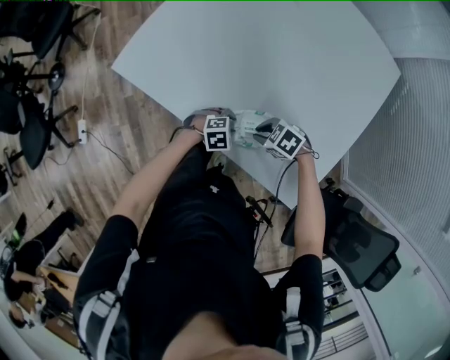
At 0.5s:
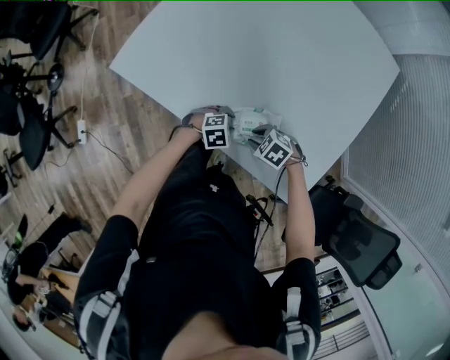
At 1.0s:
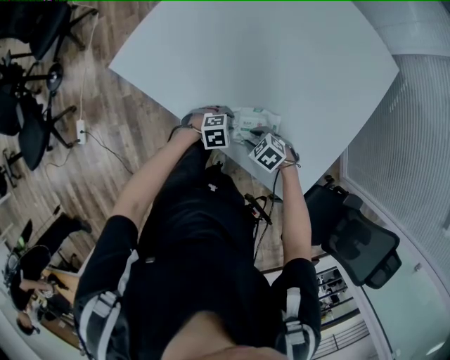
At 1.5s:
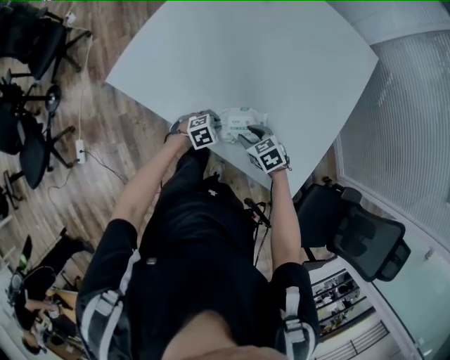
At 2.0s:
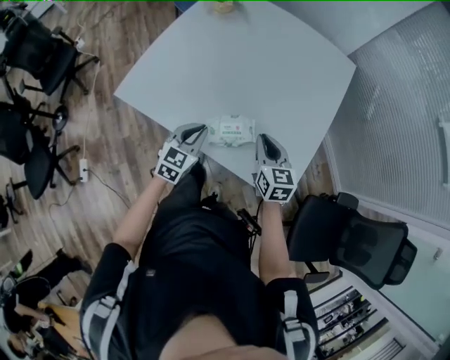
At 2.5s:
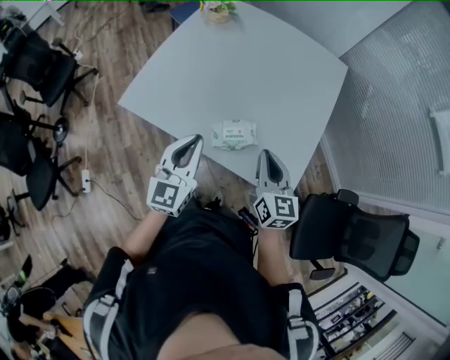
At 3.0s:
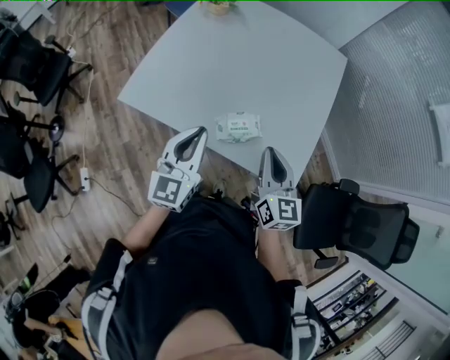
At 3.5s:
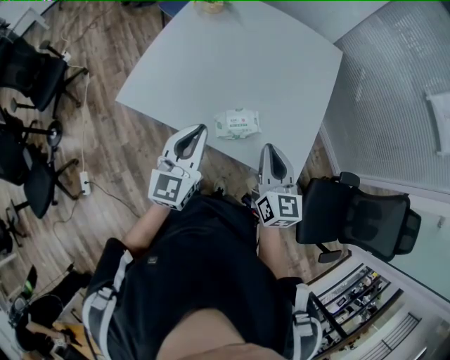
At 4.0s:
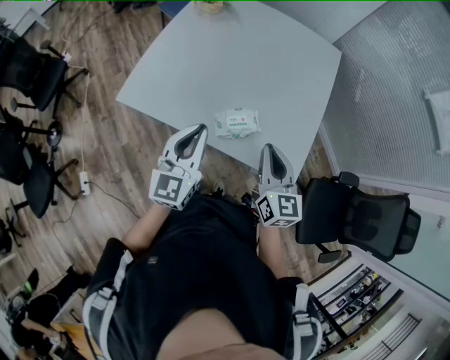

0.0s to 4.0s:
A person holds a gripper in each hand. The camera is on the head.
0.0s to 2.0s: The grippers both shift upward by approximately 20 cm. The left gripper points its fingers about 30 degrees further upward, and closes up; the right gripper points its fingers some 30 degrees further upward, and opens and closes again.
2.0s to 4.0s: The left gripper goes approximately 20 cm upward, and turns by roughly 30 degrees. Meanwhile the right gripper goes roughly 15 cm upward and backward.

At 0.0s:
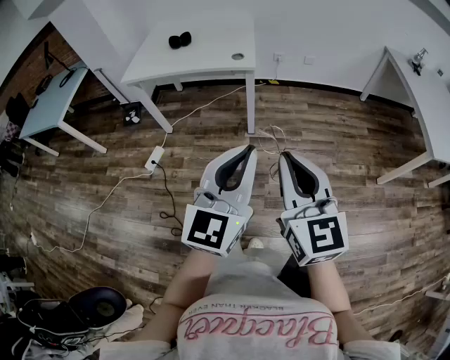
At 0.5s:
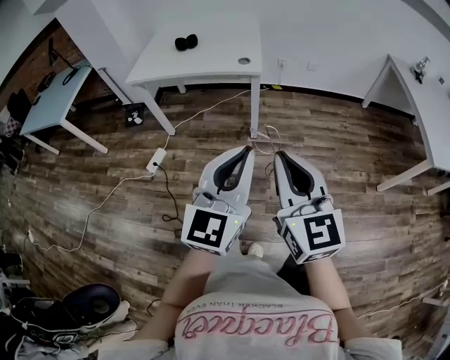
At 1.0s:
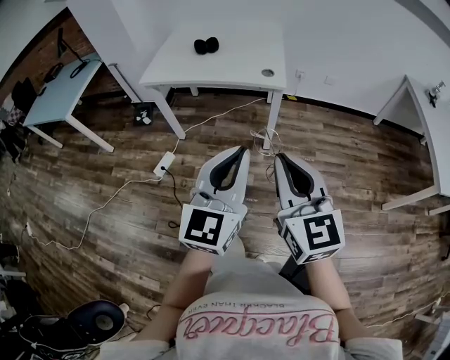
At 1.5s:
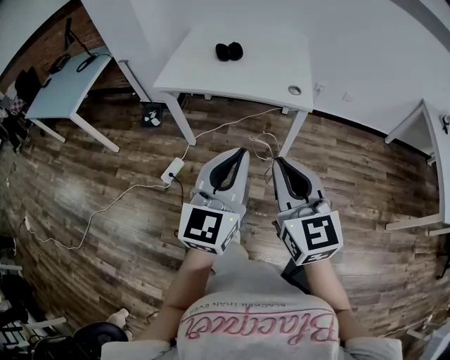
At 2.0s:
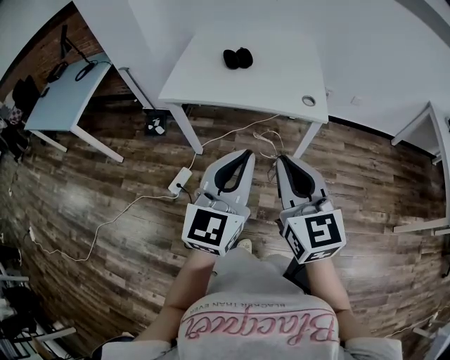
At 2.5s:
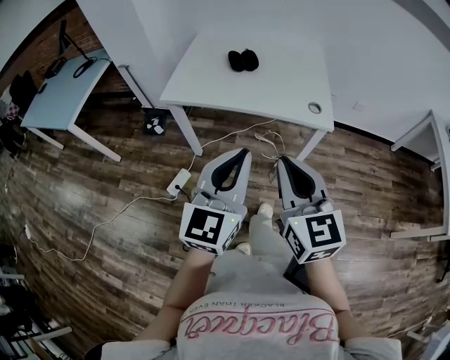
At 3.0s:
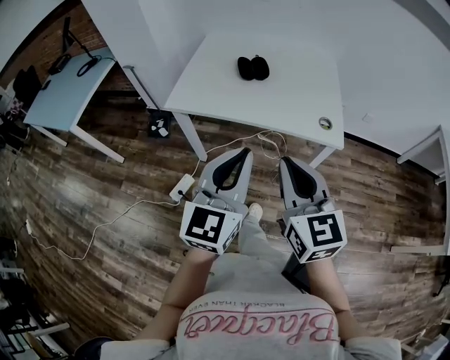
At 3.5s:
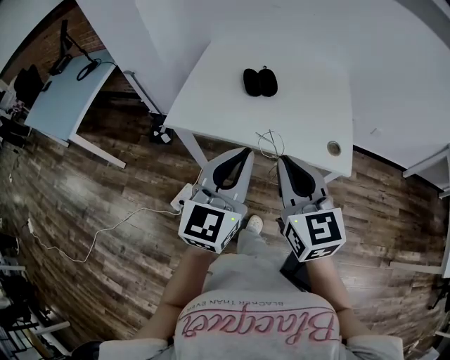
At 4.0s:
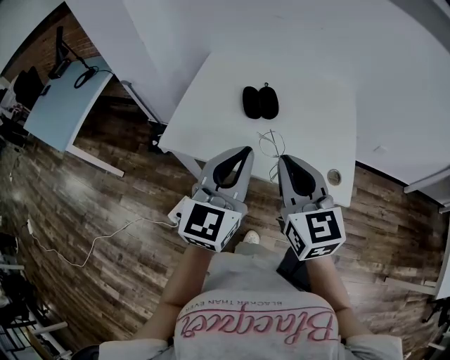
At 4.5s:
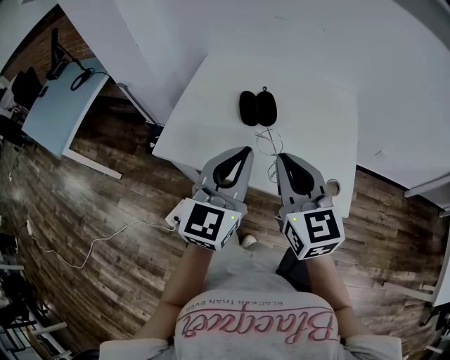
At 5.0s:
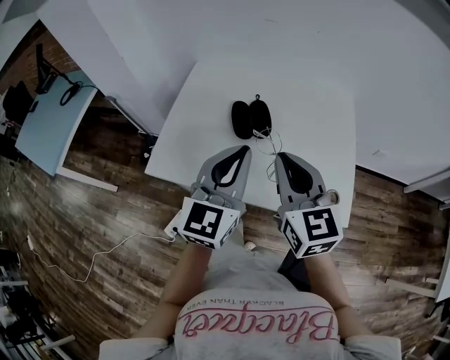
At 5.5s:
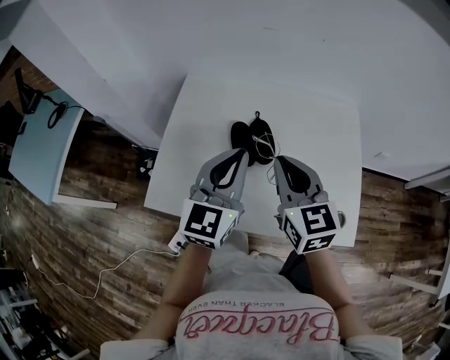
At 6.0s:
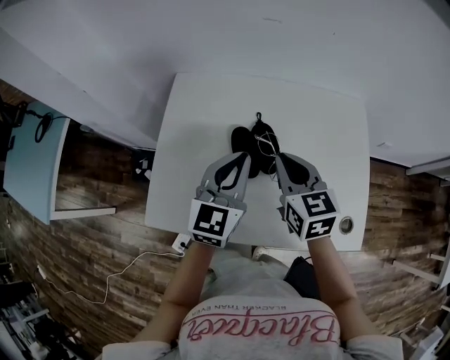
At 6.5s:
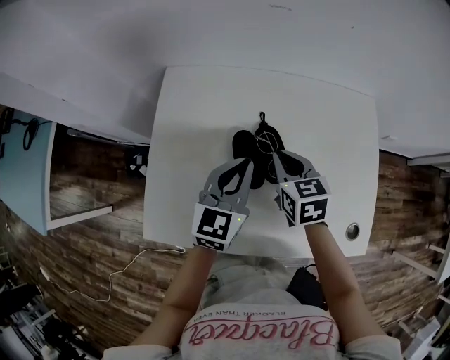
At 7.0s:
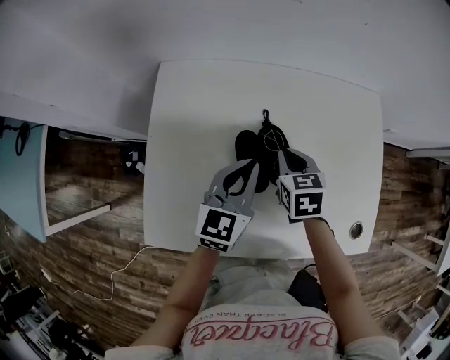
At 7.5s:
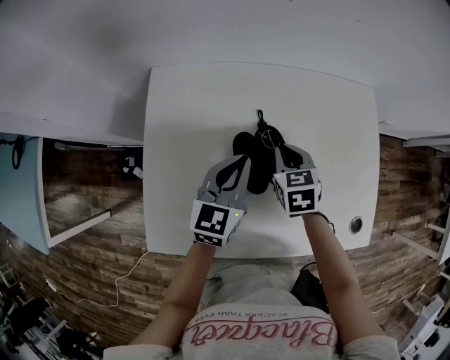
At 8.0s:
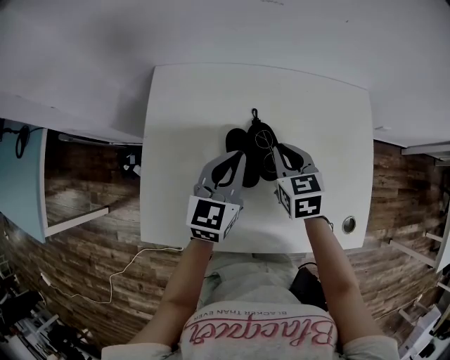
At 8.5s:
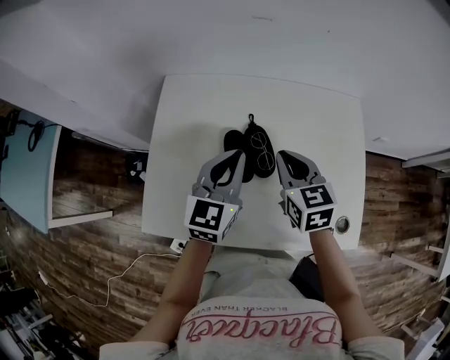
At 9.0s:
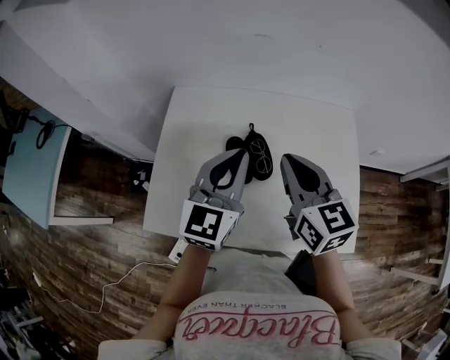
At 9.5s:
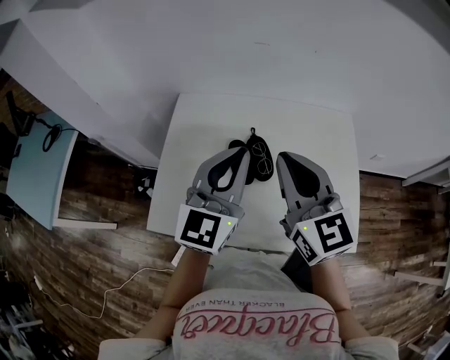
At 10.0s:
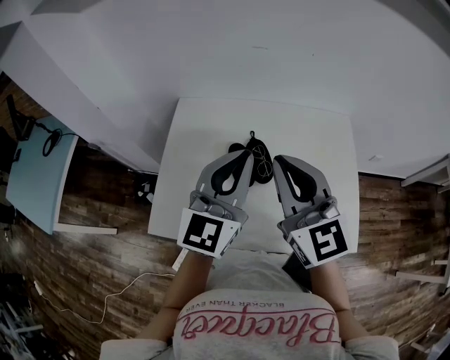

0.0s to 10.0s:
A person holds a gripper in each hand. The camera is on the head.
0.0s to 2.0s: Both grippers travel together to the left and forward, roughly 35 cm.
2.0s to 4.0s: Both grippers travel together forward, some 35 cm.
4.0s to 6.0s: Both grippers travel together forward, roughly 30 cm. The right gripper changes its angle by about 20 degrees.
6.0s to 8.0s: Both grippers travel together downward and forward, some 10 cm.
8.0s to 10.0s: The grippers both shift upward and backward by roughly 25 cm. The right gripper points its fingers roughly 40 degrees further upward, while the left gripper turns by approximately 30 degrees.

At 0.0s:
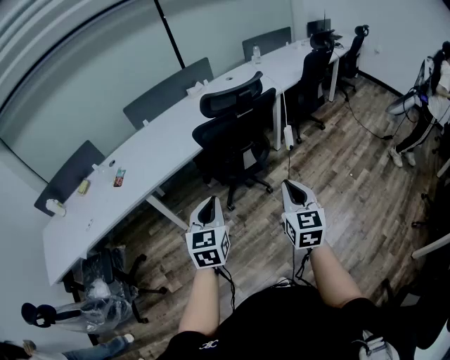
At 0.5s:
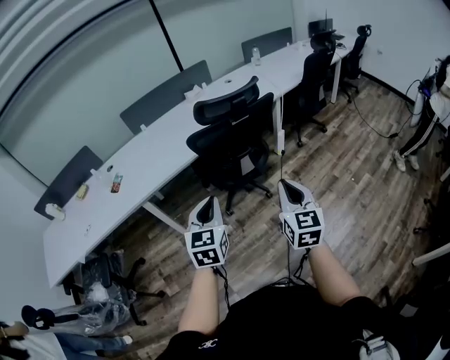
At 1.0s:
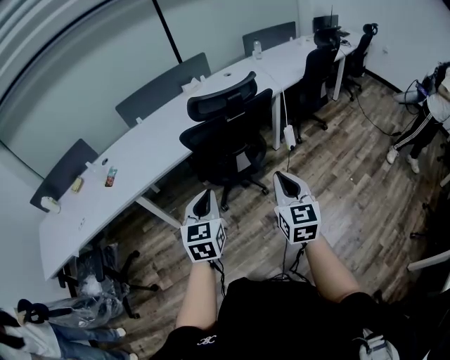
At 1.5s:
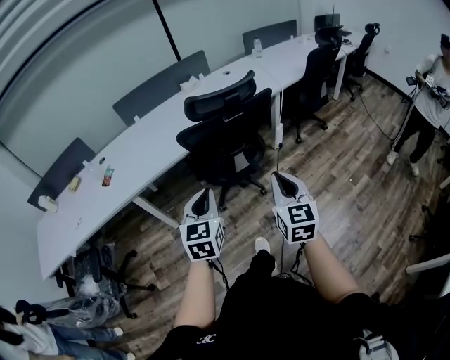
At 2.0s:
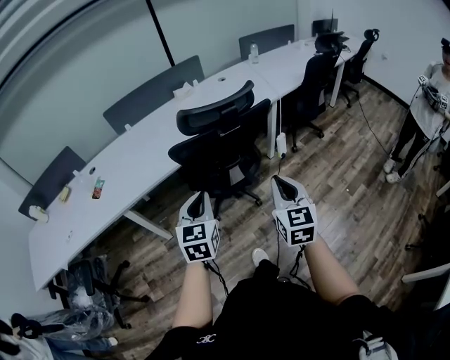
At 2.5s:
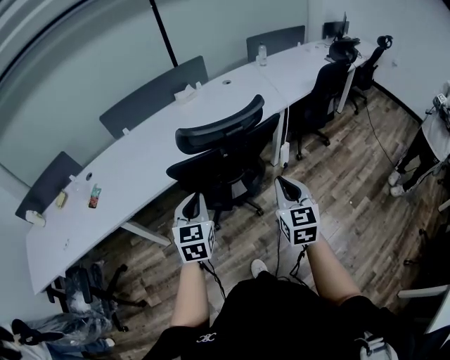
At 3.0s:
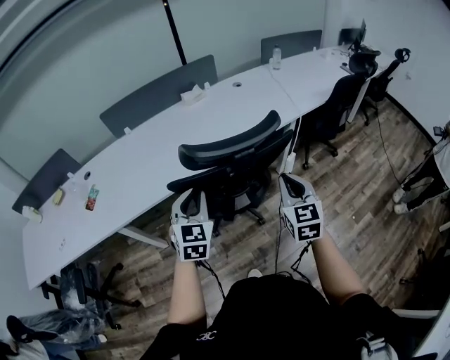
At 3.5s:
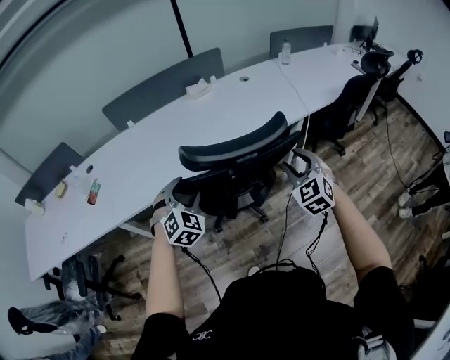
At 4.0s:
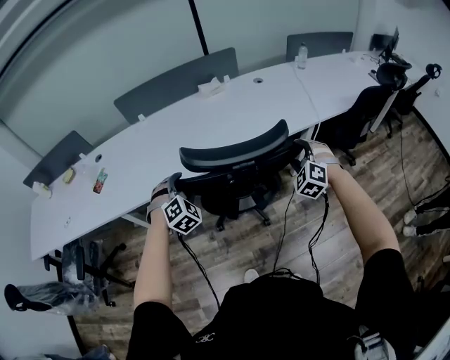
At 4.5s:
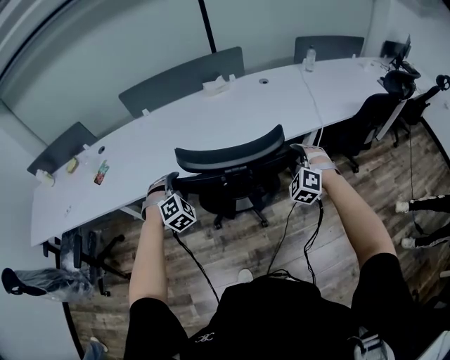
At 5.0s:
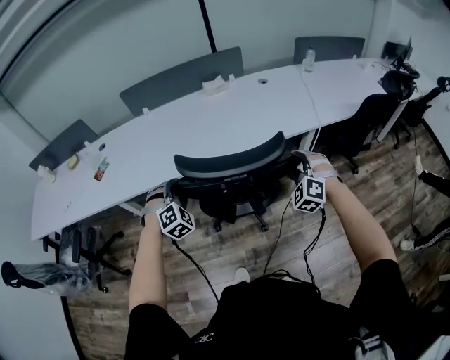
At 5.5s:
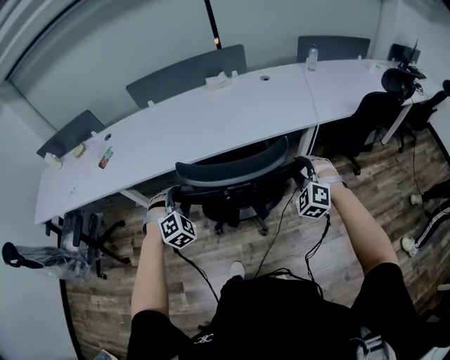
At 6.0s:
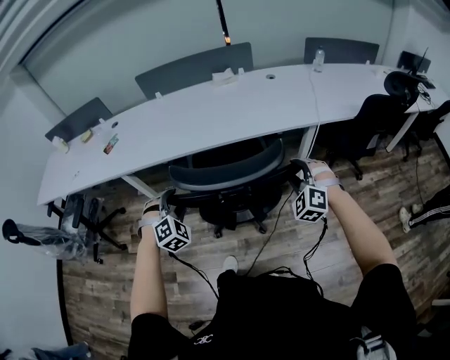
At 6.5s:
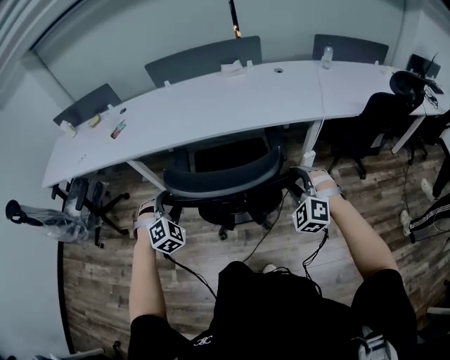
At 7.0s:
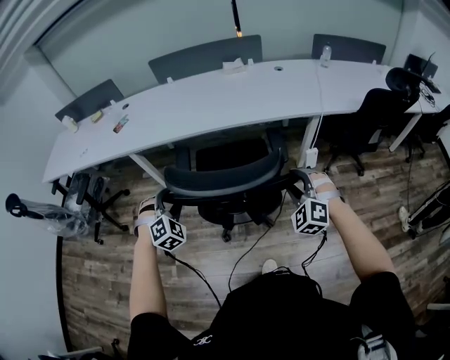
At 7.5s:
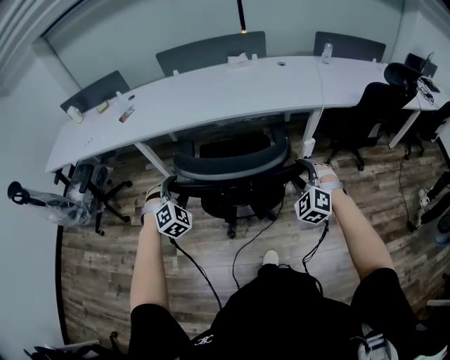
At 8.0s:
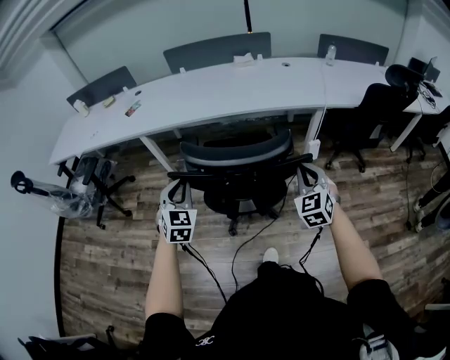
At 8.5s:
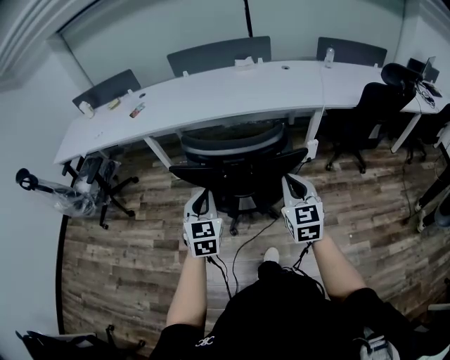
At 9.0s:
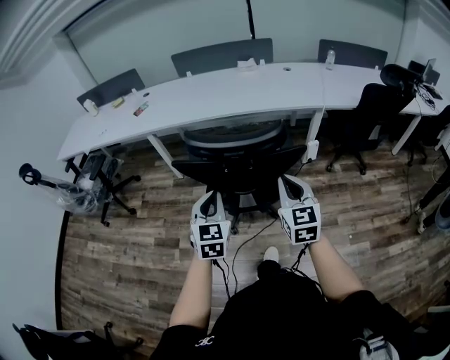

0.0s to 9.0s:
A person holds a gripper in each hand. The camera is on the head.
0.0s to 2.0s: Both grippers move forward and to the right, some 20 cm.
2.0s to 4.5s: The grippers both shift forward by approximately 35 cm. The right gripper rolls counterclockwise, seen from behind, by some 70 degrees, and opens its fingers; the left gripper rotates around the line of its fingers by some 50 degrees, clockwise from behind, and opens up.
4.5s to 7.0s: Both grippers travel together backward, roughly 30 cm.
7.0s to 9.0s: The left gripper shifts about 25 cm backward and to the right, twists about 50 degrees counterclockwise, seen from behind, and closes up, while the right gripper heads backward, covering approximately 20 cm, rotates around the line of its fingers by roughly 60 degrees, clockwise from behind, and closes its fingers.

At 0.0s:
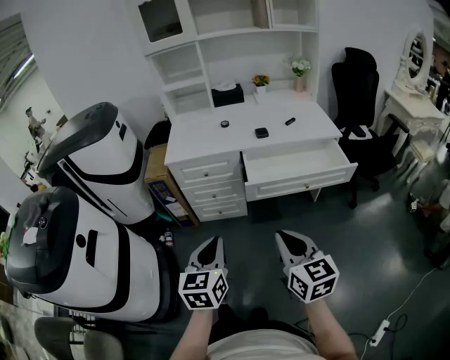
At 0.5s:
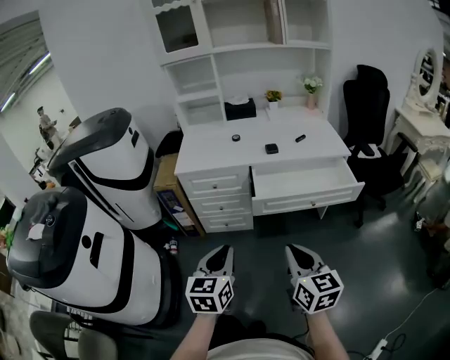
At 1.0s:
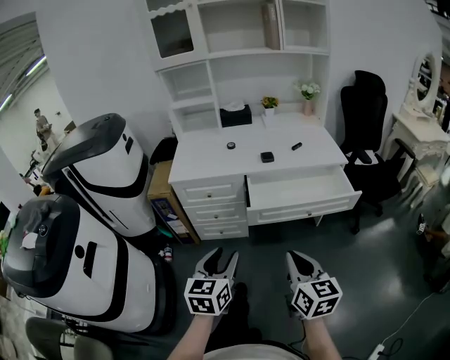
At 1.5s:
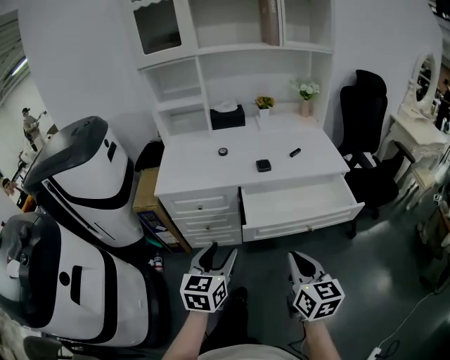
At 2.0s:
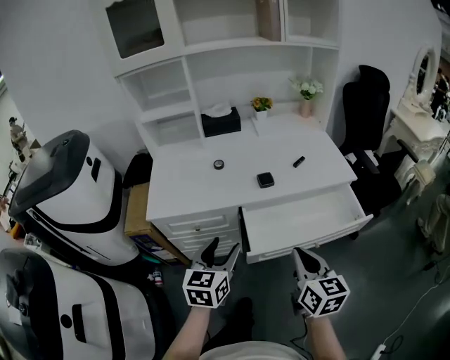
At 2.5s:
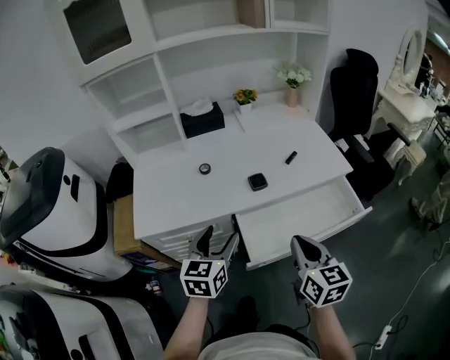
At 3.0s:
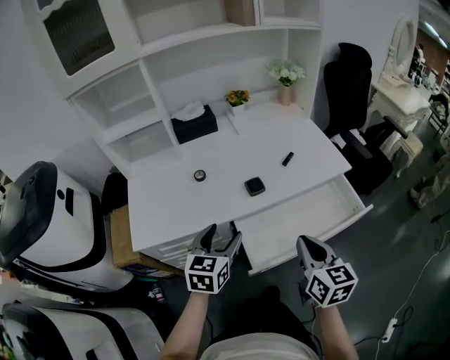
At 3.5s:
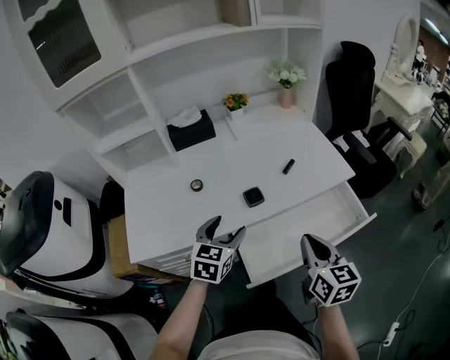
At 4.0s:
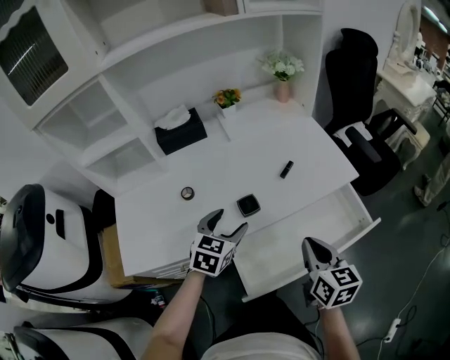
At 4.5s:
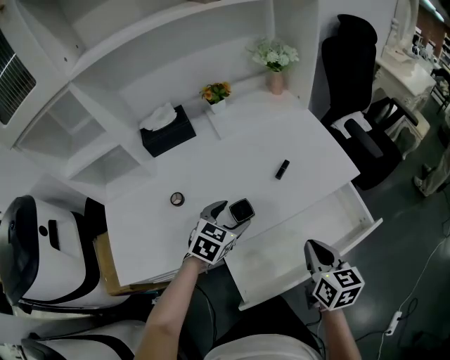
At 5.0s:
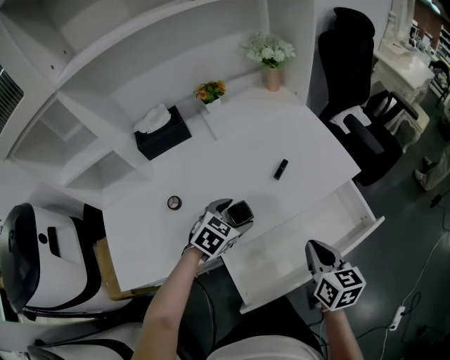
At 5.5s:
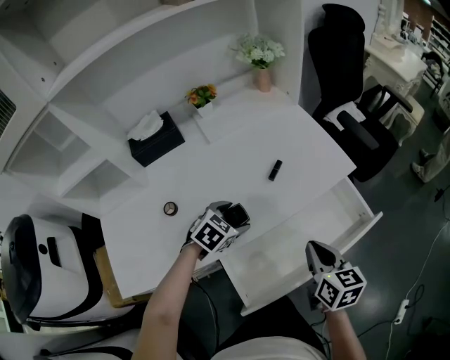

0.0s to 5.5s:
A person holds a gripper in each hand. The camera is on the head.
0.0s to 2.0s: The two grippers go some 30 cm forward. The left gripper opens its fingers.
2.0s to 3.5s: The grippers both shift forward by some 20 cm. The left gripper swivels some 20 degrees.
3.5s to 5.5s: The right gripper heads forward and downward, covering approximately 10 cm. The left gripper moves forward and downward, approximately 20 cm, and rotates some 40 degrees.
